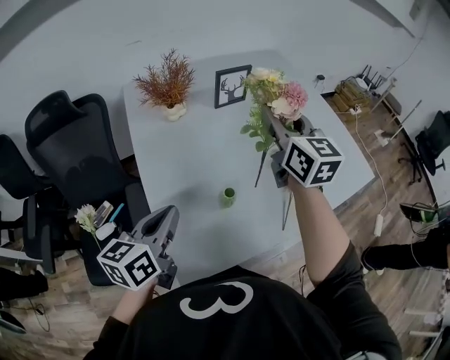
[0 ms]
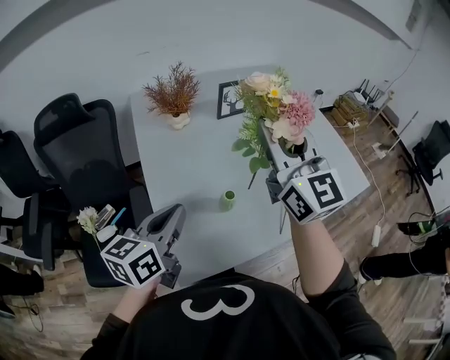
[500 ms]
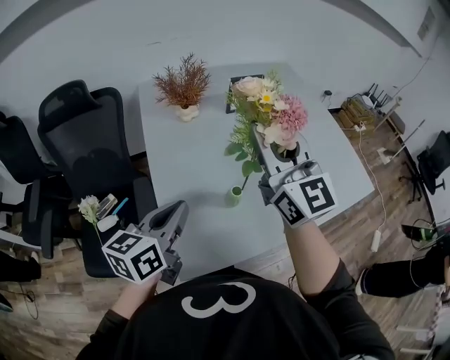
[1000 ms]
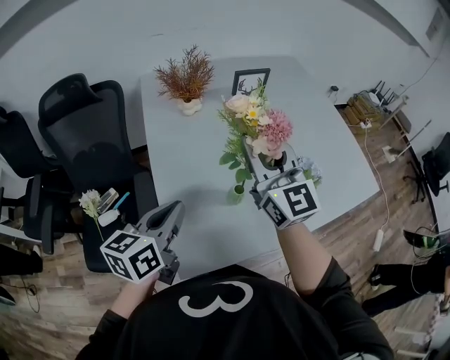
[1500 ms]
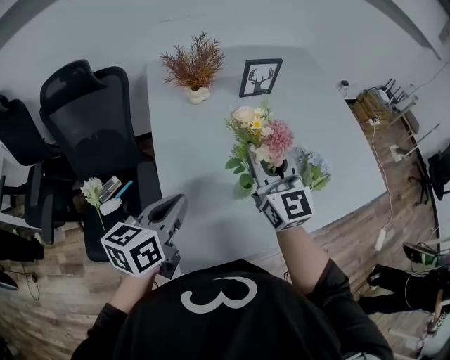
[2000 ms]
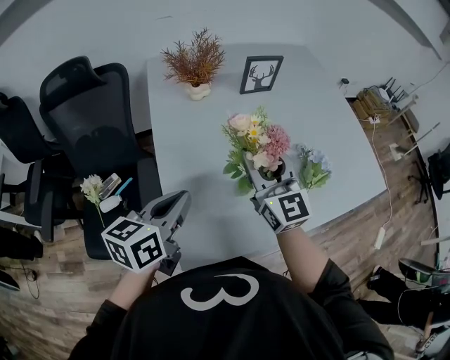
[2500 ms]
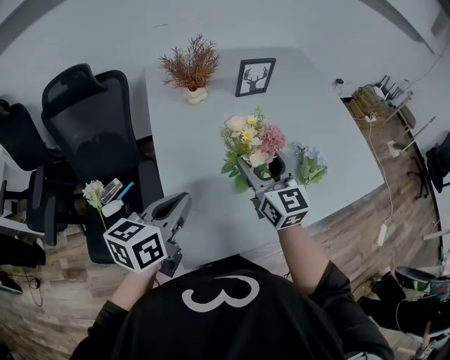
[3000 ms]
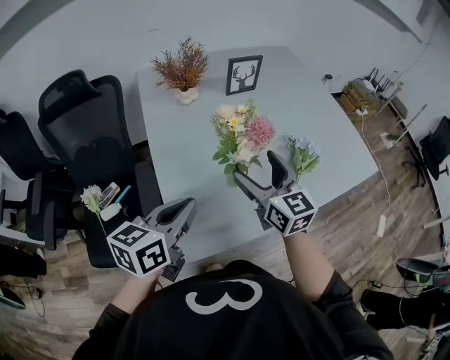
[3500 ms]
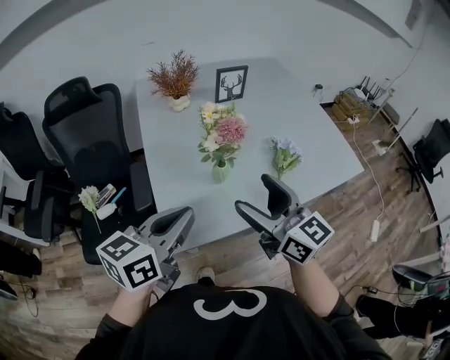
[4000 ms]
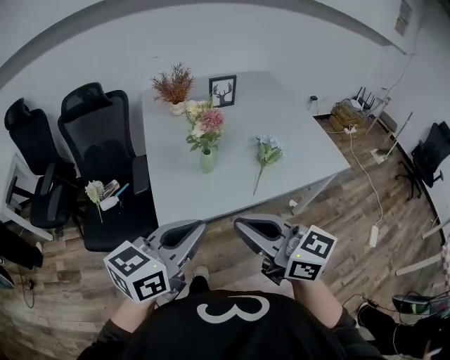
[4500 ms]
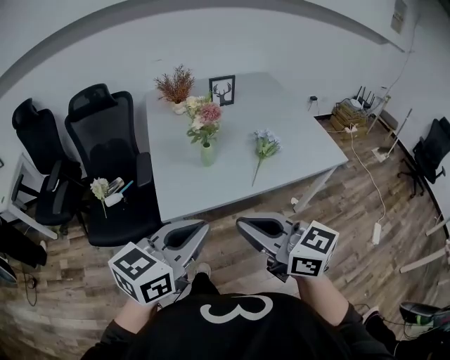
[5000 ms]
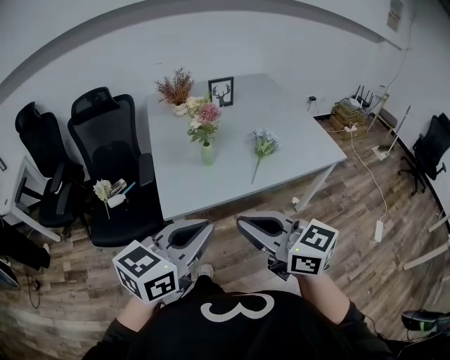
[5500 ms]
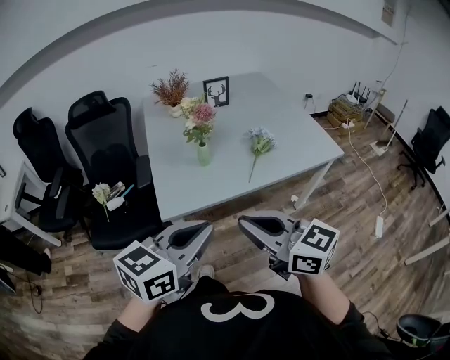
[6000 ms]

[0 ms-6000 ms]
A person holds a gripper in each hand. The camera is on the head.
0 ms to 2000 ms: The right gripper moves to the left, backward and downward, approximately 15 cm.
2000 ms to 4000 ms: The right gripper heads backward, covering some 20 cm, rotates roughly 20 degrees, and opens up, while the left gripper shifts approximately 15 cm backward, to the right and upward.
4000 ms to 6000 ms: The left gripper travels backward and to the right by approximately 25 cm; the right gripper moves backward, roughly 25 cm, and closes.

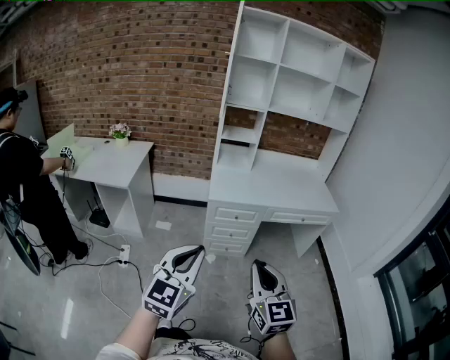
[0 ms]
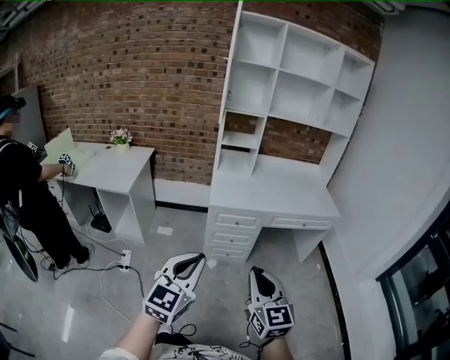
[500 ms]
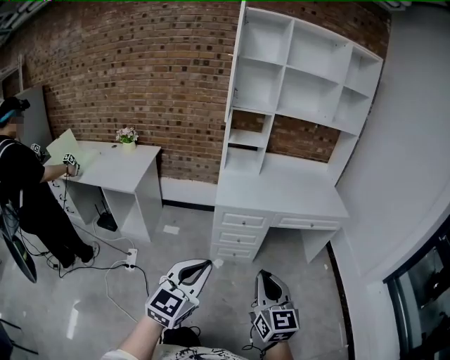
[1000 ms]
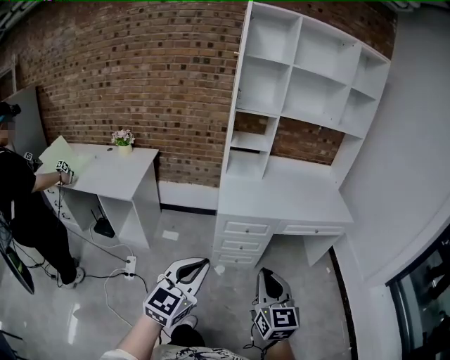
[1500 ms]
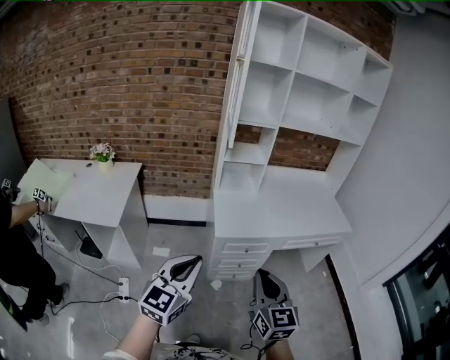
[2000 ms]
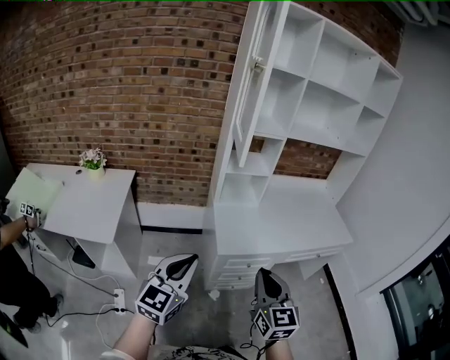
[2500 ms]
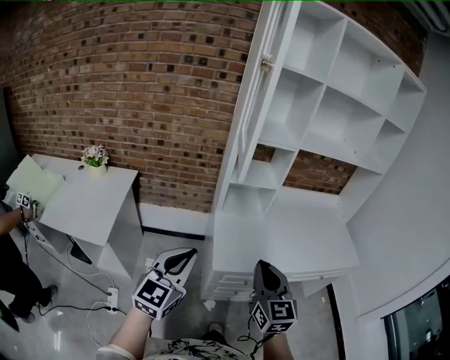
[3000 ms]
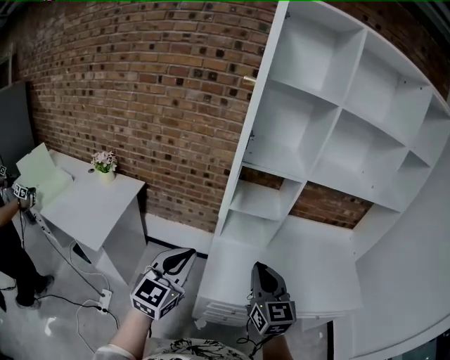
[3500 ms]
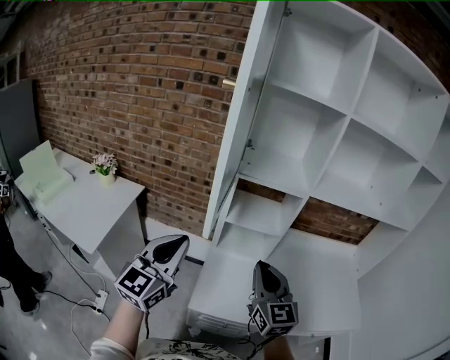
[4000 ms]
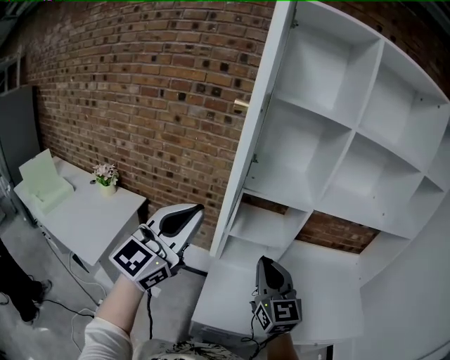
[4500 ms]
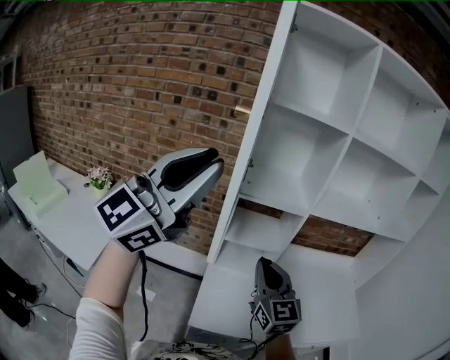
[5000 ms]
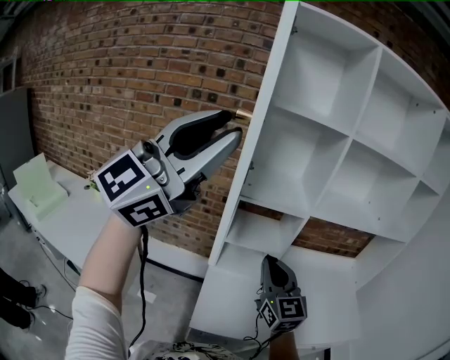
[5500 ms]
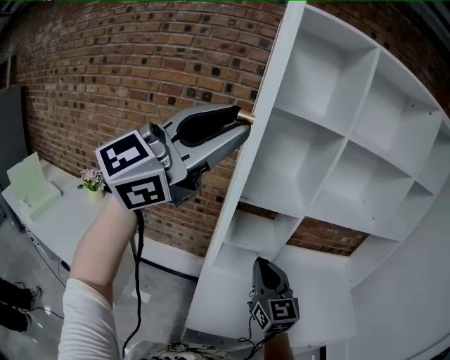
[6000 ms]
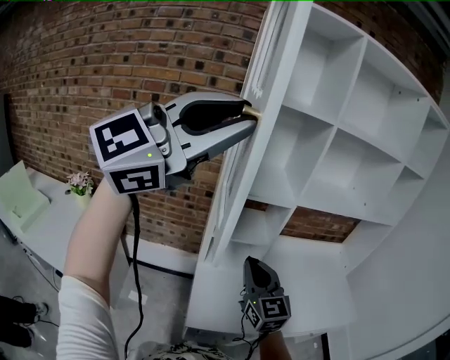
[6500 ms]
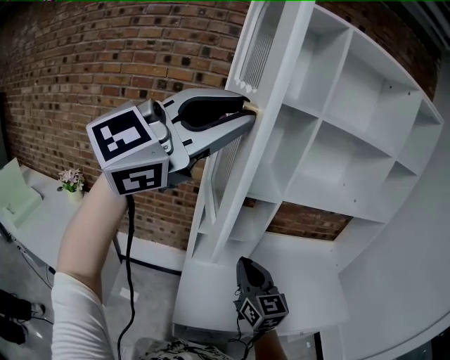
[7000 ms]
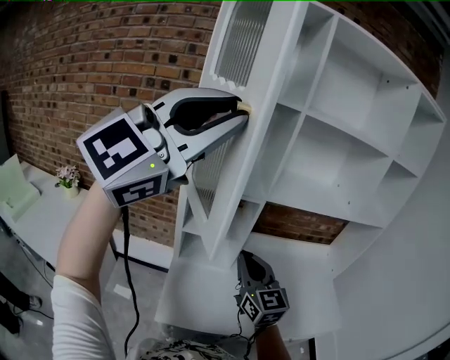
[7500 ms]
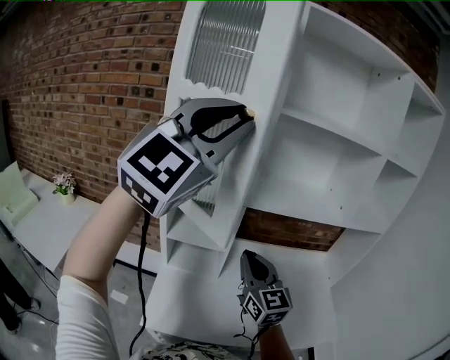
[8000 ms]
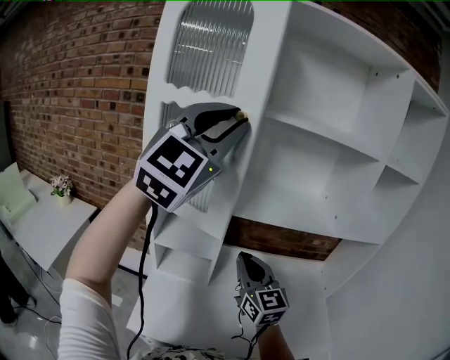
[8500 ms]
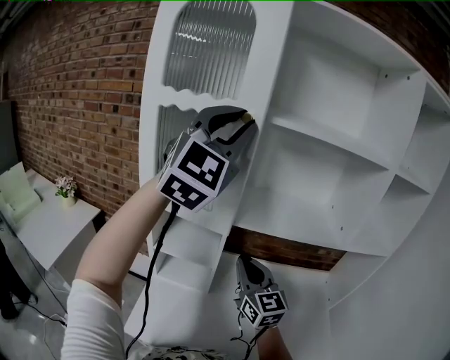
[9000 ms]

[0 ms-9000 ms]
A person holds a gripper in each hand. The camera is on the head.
0 ms to 2000 ms: Both grippers move forward and to the left, roughly 25 cm.
2000 ms to 4500 ms: Both grippers are carried forward, some 40 cm. The right gripper turns by roughly 20 degrees. The left gripper shifts roughly 25 cm upward, and rotates roughly 30 degrees.
4500 ms to 7000 ms: The left gripper moves upward and to the right, approximately 20 cm, and turns by approximately 30 degrees.
7000 ms to 9000 ms: The right gripper travels to the right and forward by roughly 25 cm; the left gripper moves forward and to the right, some 30 cm, and changes its angle by approximately 40 degrees.

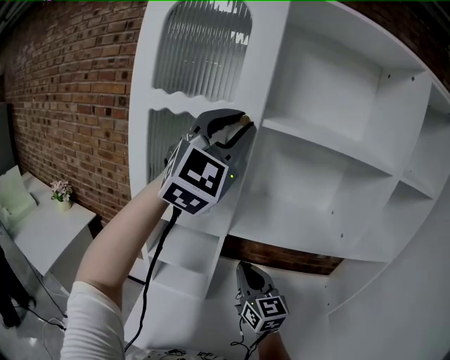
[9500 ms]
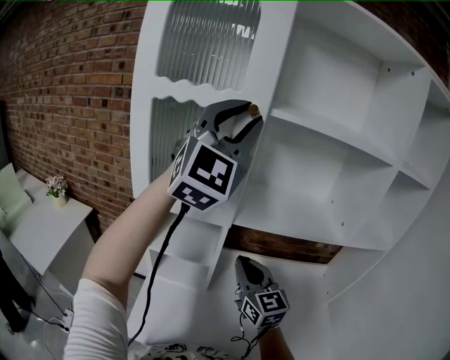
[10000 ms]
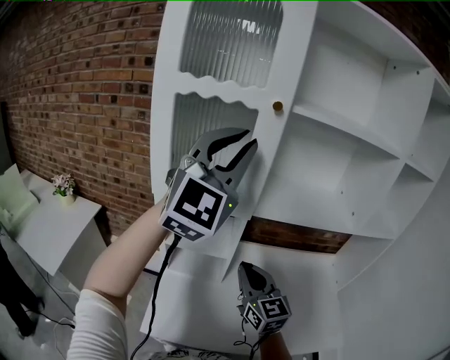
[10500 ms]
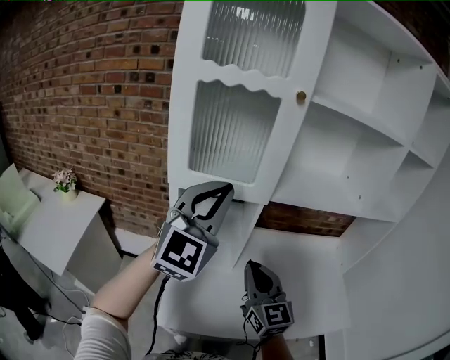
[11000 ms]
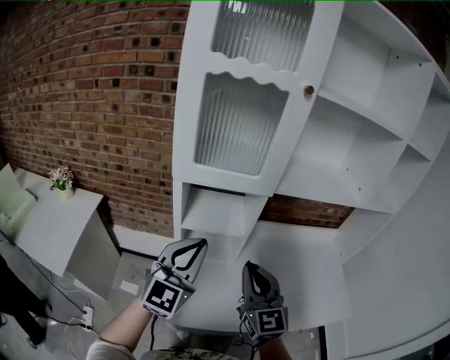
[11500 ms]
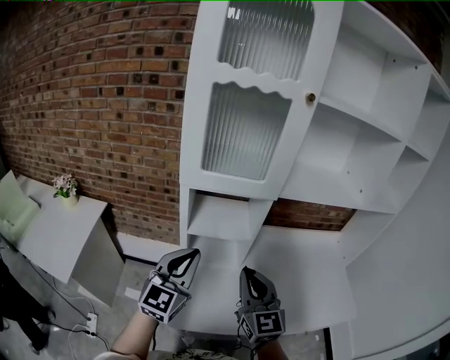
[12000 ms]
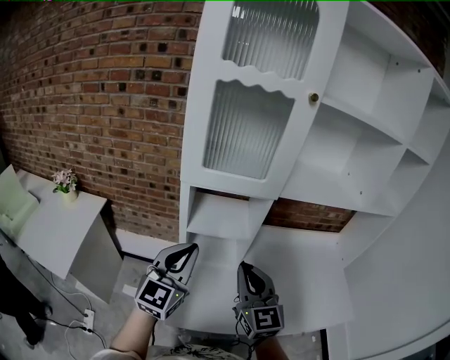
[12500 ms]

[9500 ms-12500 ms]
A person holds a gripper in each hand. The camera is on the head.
9500 ms to 11000 ms: The right gripper shifts about 15 cm backward and to the left. The left gripper heads downward, to the left and backward, covering some 25 cm.
11000 ms to 12500 ms: The right gripper is displaced to the left by roughly 5 cm, while the left gripper travels downward and to the left by some 20 cm, and rotates some 20 degrees.

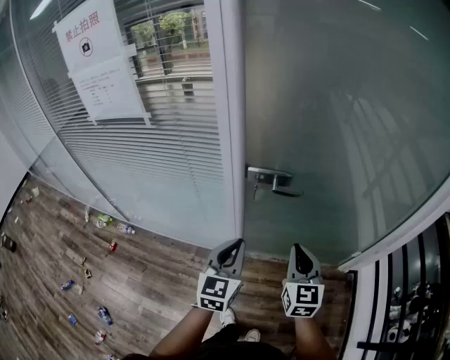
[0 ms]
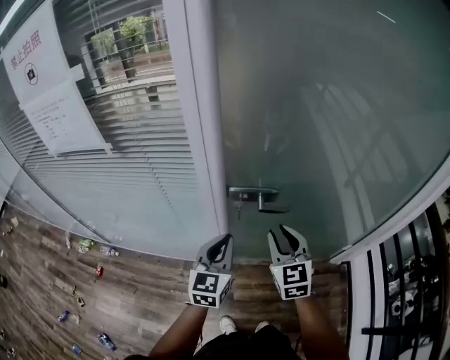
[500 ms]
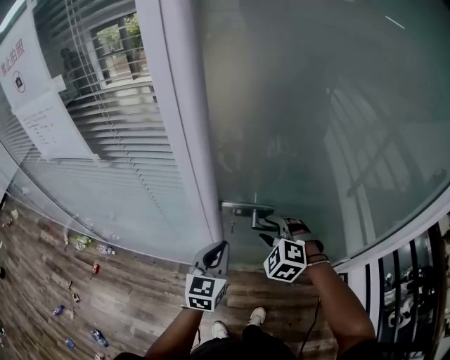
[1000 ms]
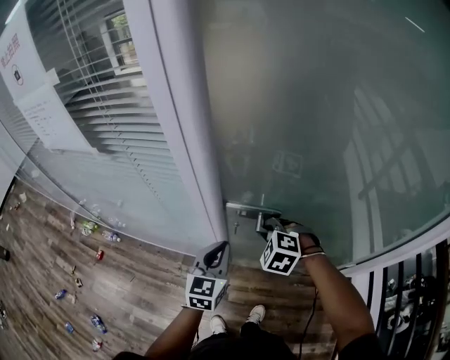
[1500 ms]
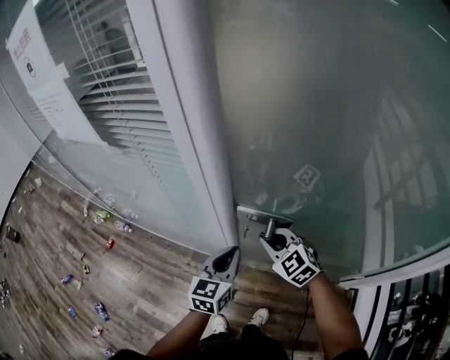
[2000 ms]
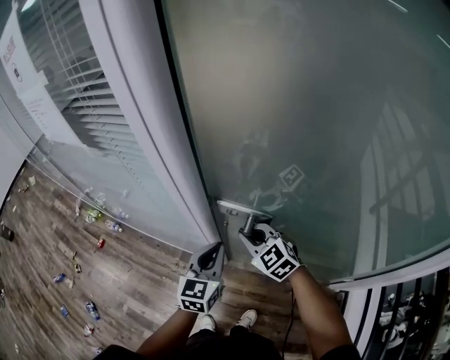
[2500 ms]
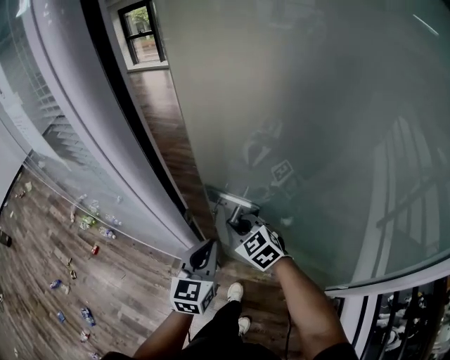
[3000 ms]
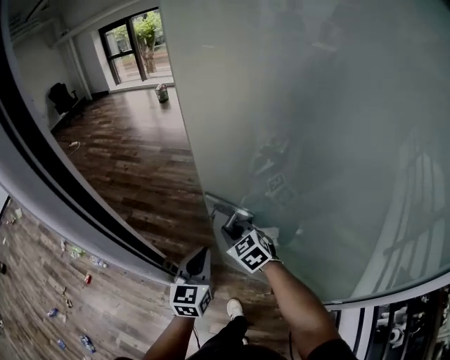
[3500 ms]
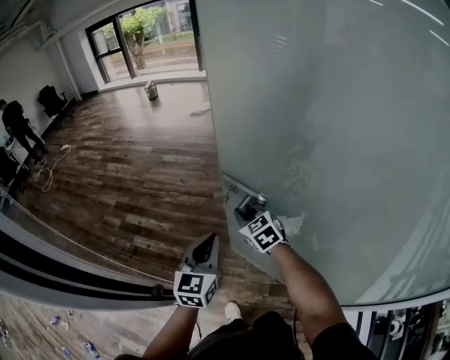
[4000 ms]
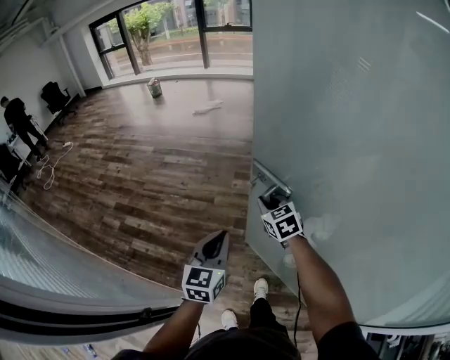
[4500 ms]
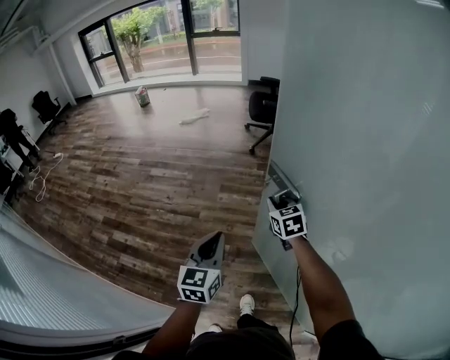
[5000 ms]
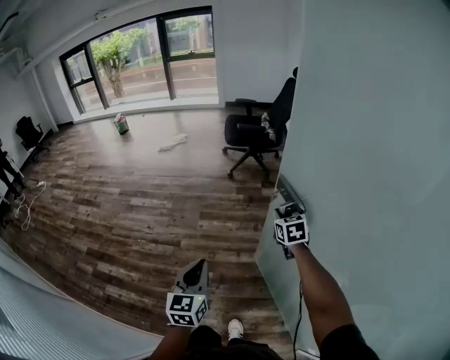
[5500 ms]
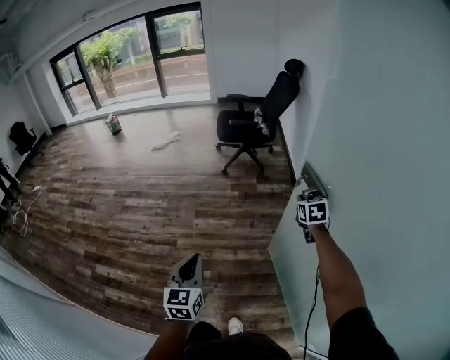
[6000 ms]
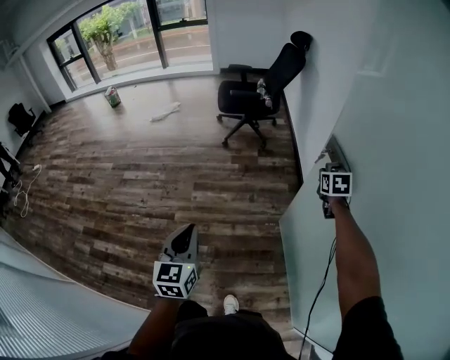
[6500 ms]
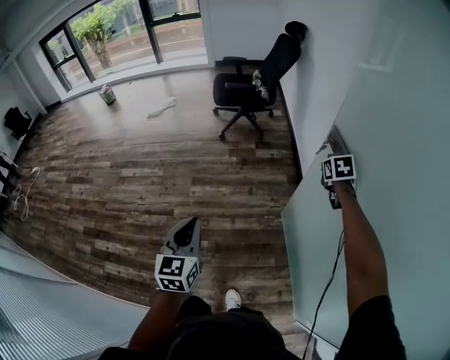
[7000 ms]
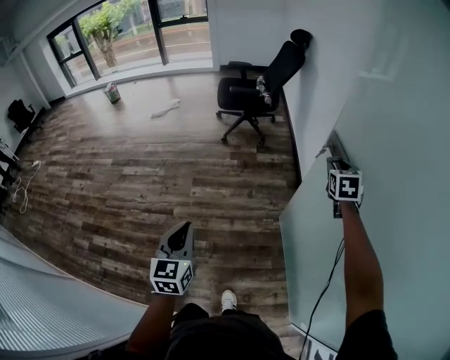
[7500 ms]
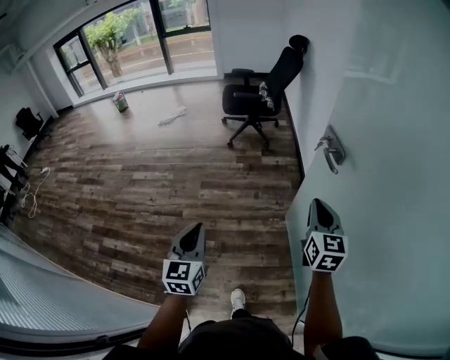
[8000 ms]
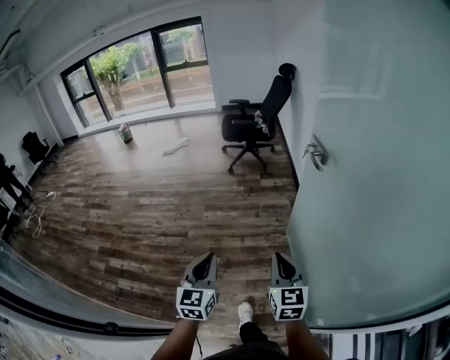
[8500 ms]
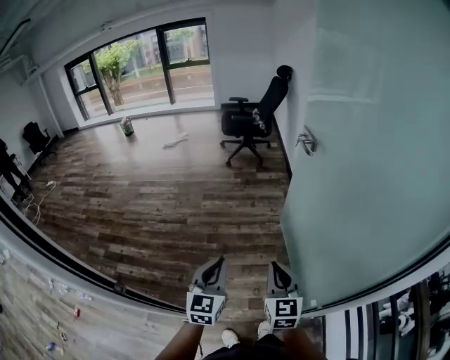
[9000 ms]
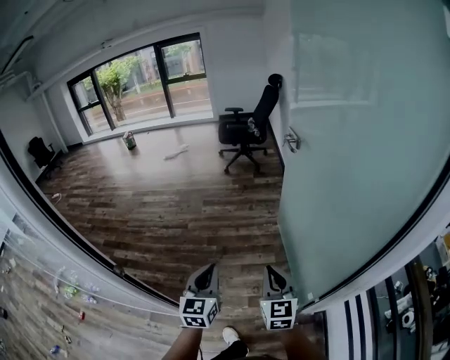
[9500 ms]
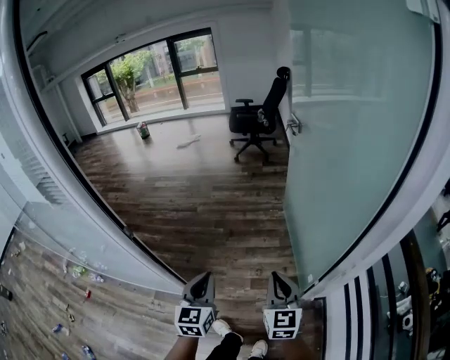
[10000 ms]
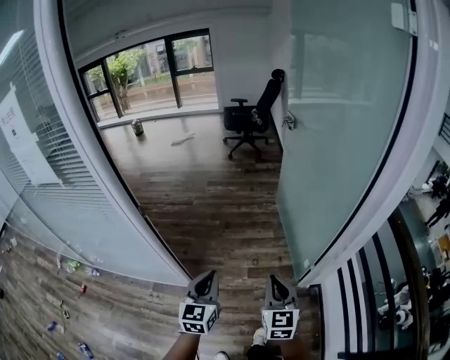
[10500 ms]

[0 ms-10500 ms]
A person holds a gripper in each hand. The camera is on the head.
0 ms to 2000 ms: The left gripper heads forward and downward, covering about 20 cm. The right gripper travels forward by roughly 25 cm, turns by roughly 60 degrees, and opens, then closes once more.
2000 ms to 4000 ms: The two grippers go about 35 cm forward and to the right.
4000 ms to 6500 ms: The pair of grippers is taken roughly 60 cm. The right gripper swivels roughly 50 degrees.
6500 ms to 8500 ms: The right gripper shifts about 50 cm backward, turns by roughly 30 degrees, and opens, then closes again. The left gripper is displaced backward by about 25 cm.
8500 ms to 10500 ms: Both grippers are carried backward, approximately 60 cm.
